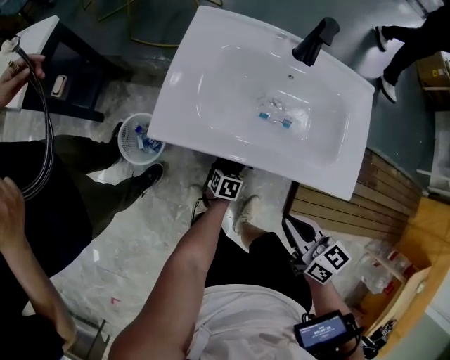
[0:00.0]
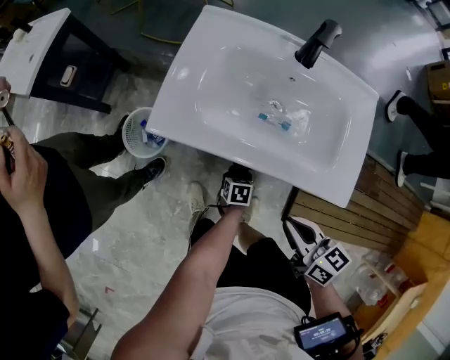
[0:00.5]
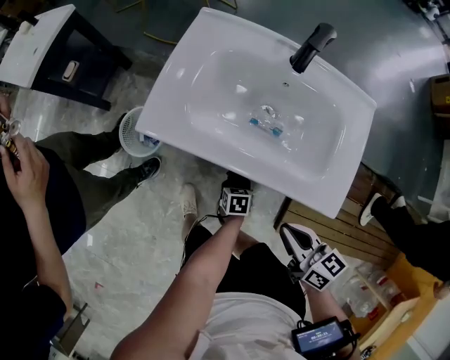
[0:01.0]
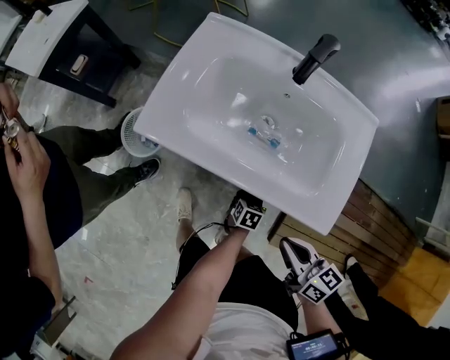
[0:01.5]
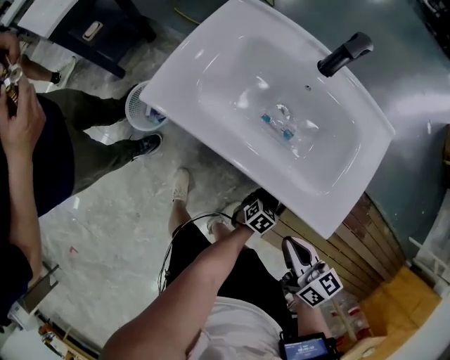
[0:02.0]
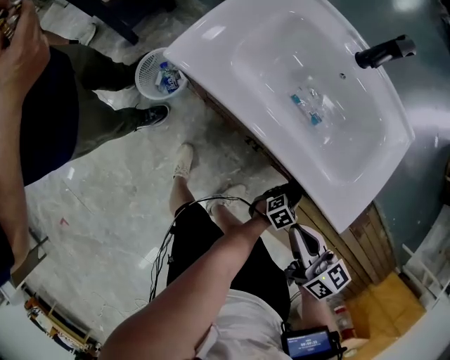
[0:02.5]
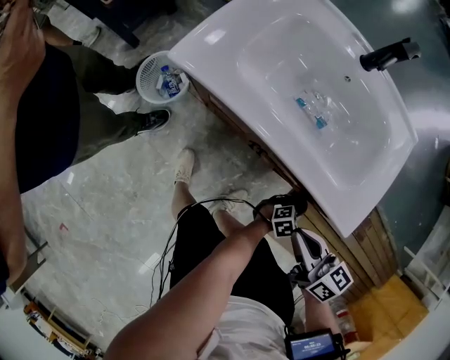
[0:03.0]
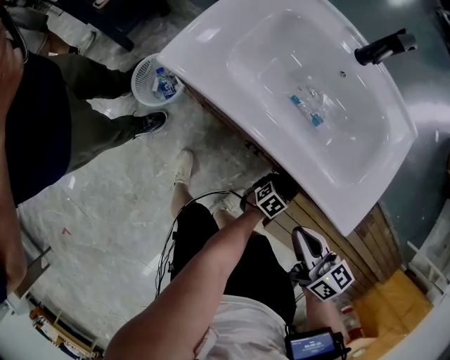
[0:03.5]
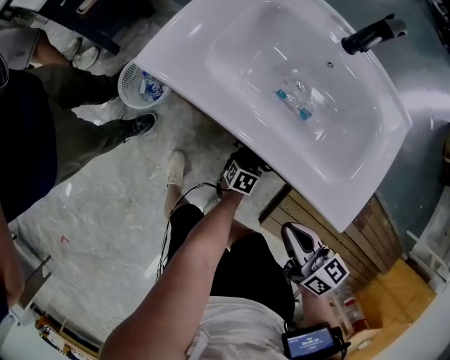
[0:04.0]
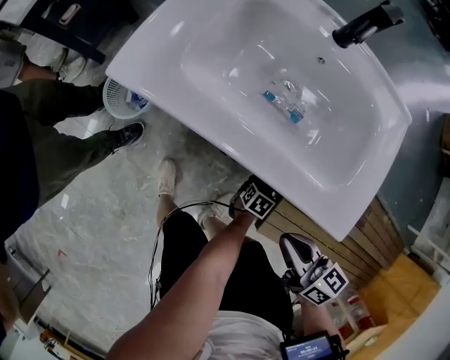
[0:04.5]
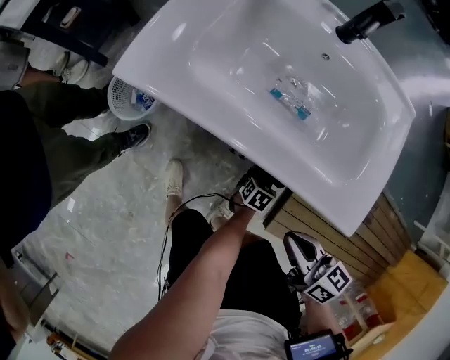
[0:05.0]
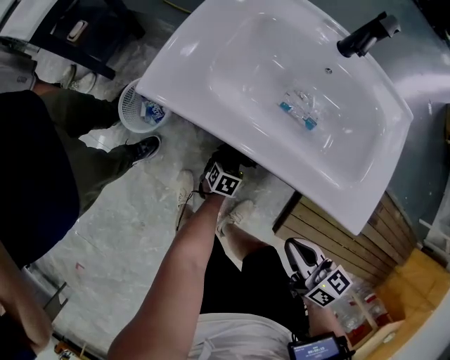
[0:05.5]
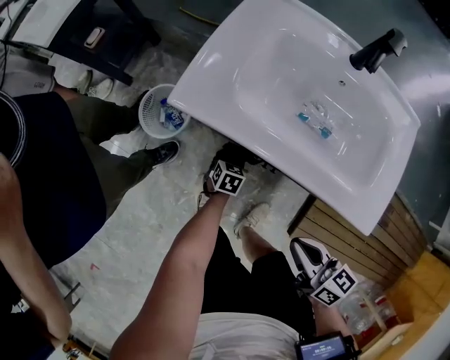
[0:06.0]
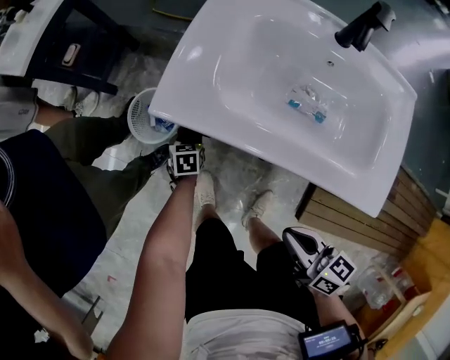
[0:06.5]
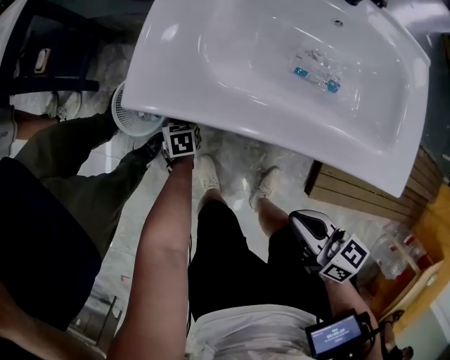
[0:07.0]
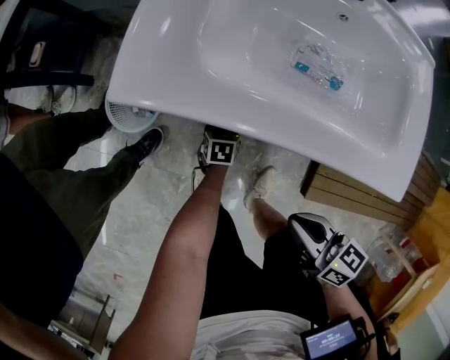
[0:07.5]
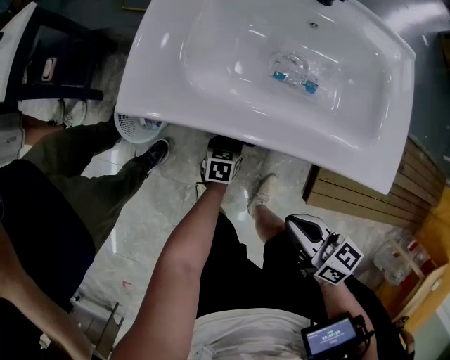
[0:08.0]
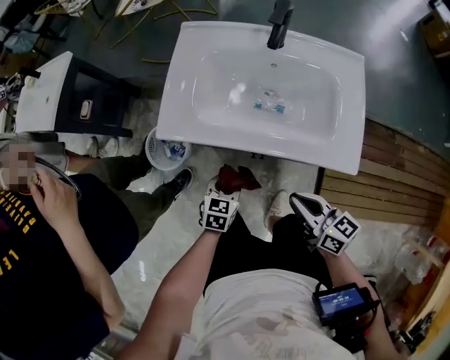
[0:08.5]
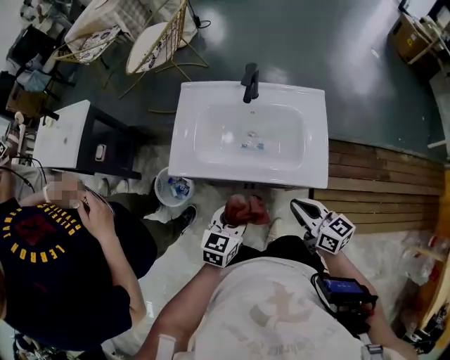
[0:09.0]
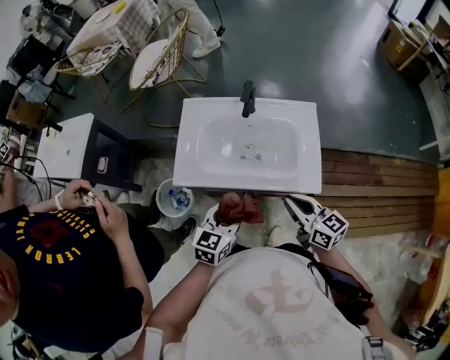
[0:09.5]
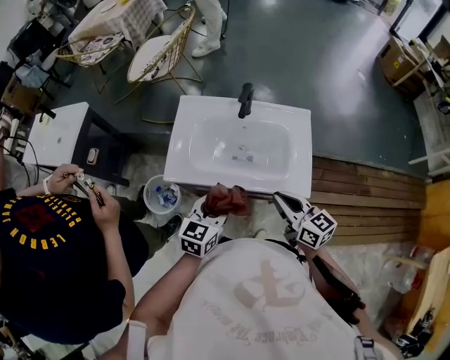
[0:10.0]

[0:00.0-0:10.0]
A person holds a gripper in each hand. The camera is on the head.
0:00.0 to 0:02.0: The left gripper heads to the right, covering some 25 cm, while the right gripper travels to the right by about 10 cm.
0:02.0 to 0:04.0: The left gripper changes place by some 15 cm, and turns by about 20 degrees.
0:04.0 to 0:06.0: The right gripper travels to the left by roughly 5 cm. The left gripper travels to the left by some 15 cm.
0:06.0 to 0:08.0: The left gripper travels to the left and back again, about 15 cm each way.
0:08.0 to 0:10.0: The right gripper shifts some 25 cm upward and forward, and rotates some 20 degrees, while the left gripper is displaced upward by approximately 50 cm, and rotates some 30 degrees.

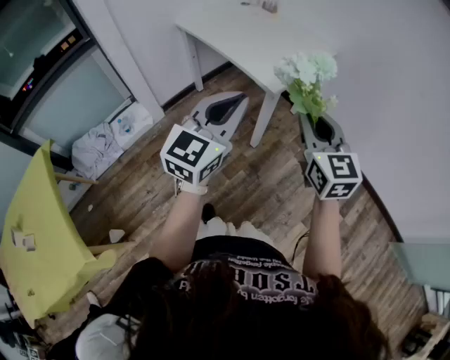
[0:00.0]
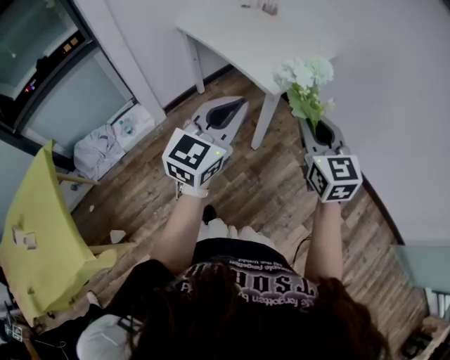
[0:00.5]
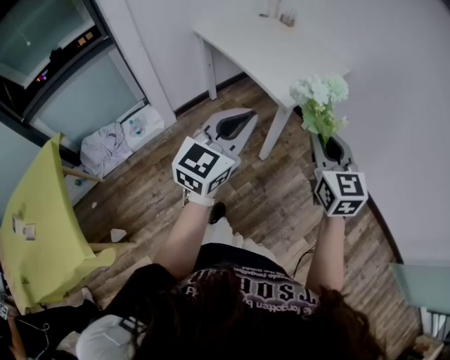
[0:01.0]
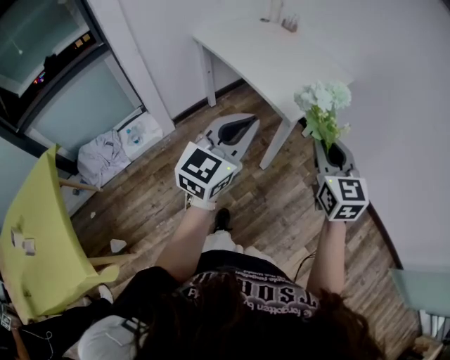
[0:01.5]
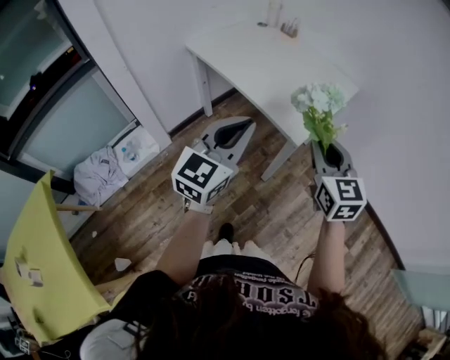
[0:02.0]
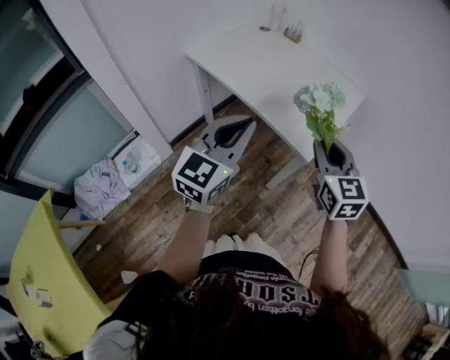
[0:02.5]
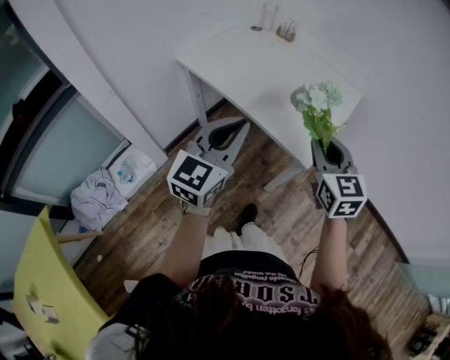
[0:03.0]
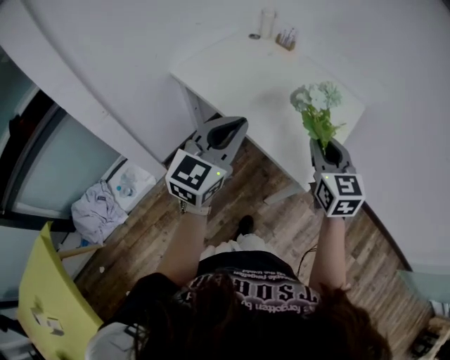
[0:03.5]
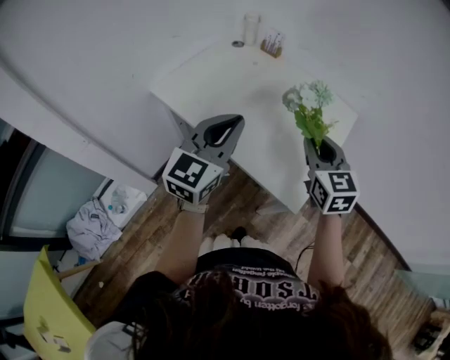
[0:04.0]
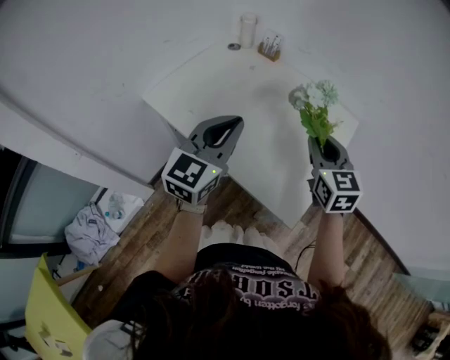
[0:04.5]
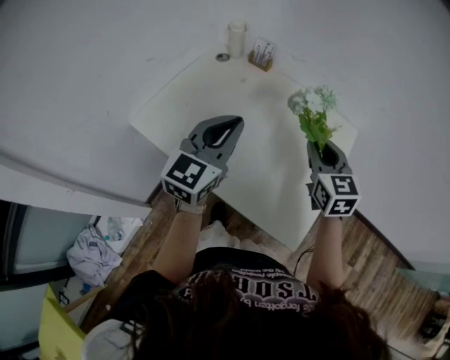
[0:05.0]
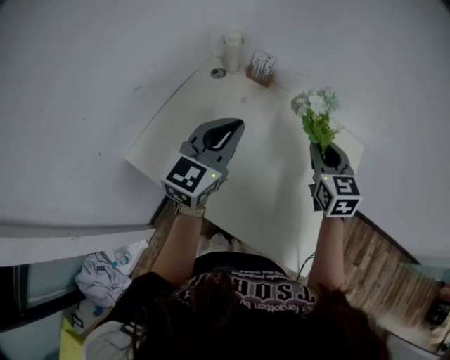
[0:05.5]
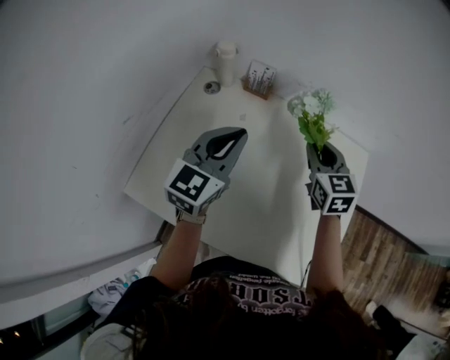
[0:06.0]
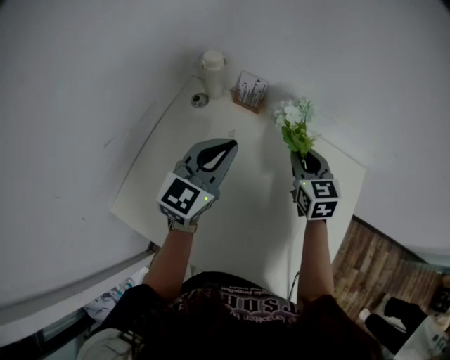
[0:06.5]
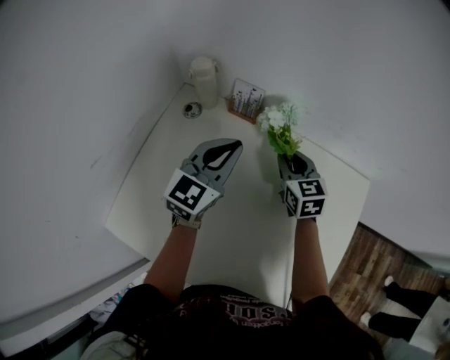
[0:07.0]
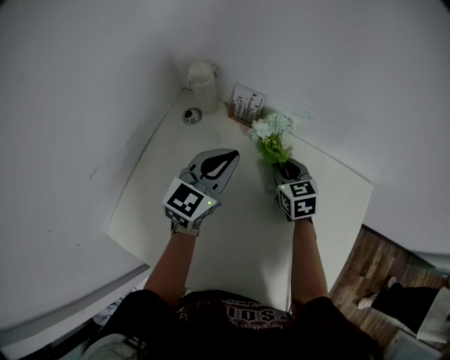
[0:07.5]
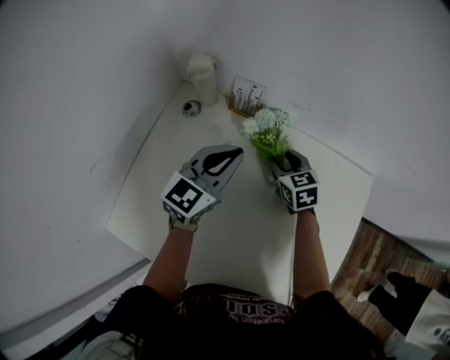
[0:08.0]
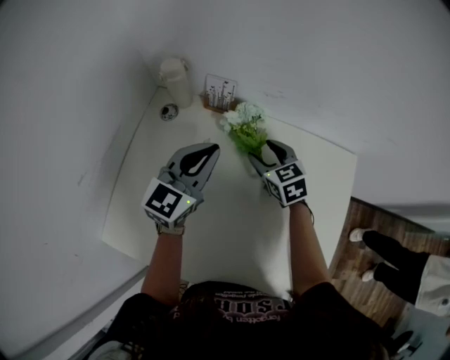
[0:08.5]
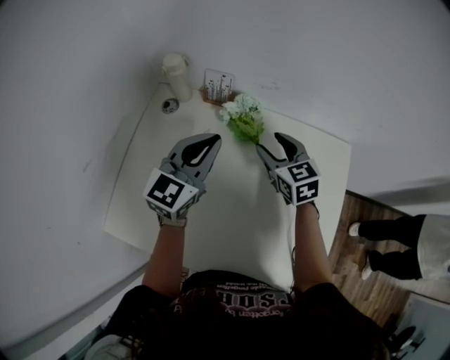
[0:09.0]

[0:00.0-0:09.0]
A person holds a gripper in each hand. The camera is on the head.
0:00.0 to 0:02.0: Both grippers travel together forward and to the left, roughly 15 cm.
0:02.0 to 0:04.5: Both grippers travel together forward, some 25 cm.
0:04.5 to 0:07.0: The right gripper heads forward and downward, covering approximately 35 cm. Meanwhile the left gripper is displaced forward by some 40 cm.
0:07.0 to 0:09.0: The left gripper changes place by approximately 5 cm. The right gripper travels backward by roughly 5 cm, and opens its fingers.

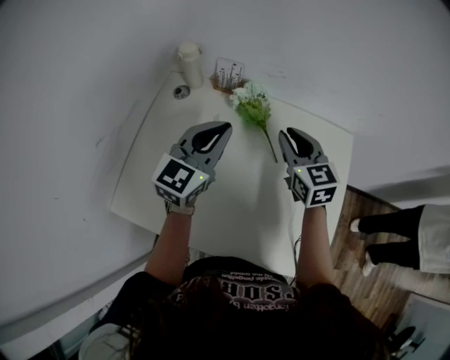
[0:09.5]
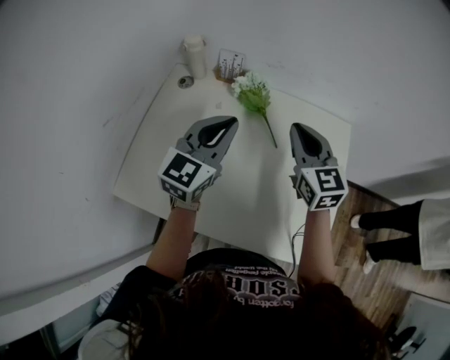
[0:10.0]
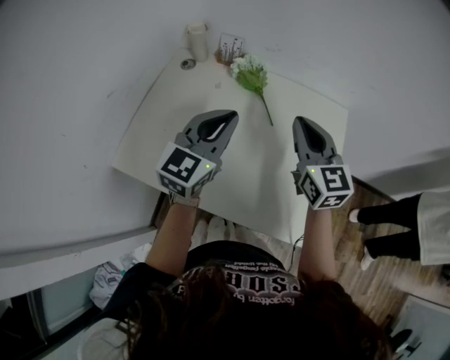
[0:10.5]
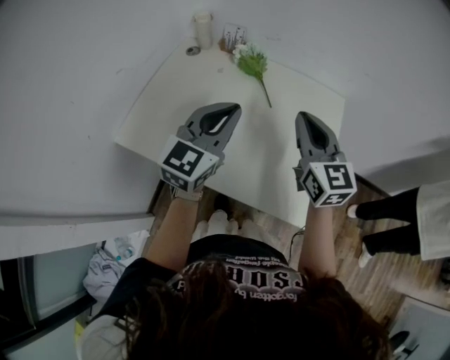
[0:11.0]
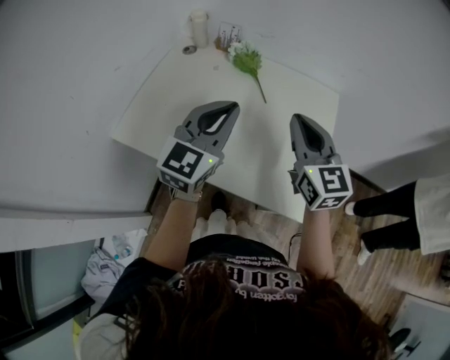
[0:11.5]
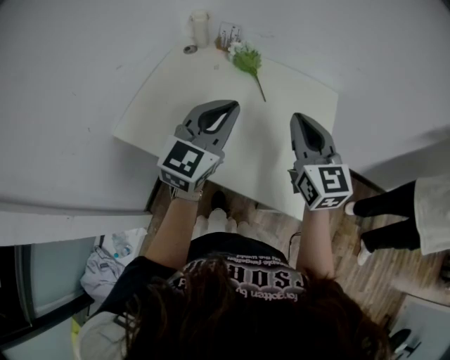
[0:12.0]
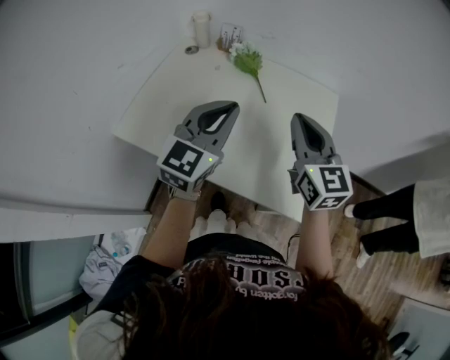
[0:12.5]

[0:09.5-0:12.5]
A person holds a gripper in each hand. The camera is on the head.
0:09.5 to 0:11.0: The right gripper moves backward and upward, about 20 cm. Meanwhile the left gripper is displaced backward and to the right by about 20 cm.
0:11.0 to 0:12.5: The grippers stay close to where they were, moving slightly.

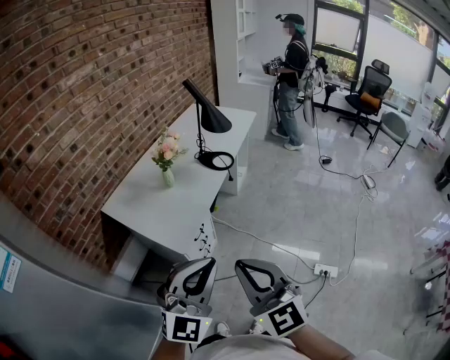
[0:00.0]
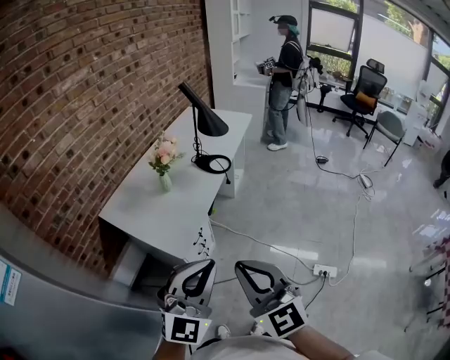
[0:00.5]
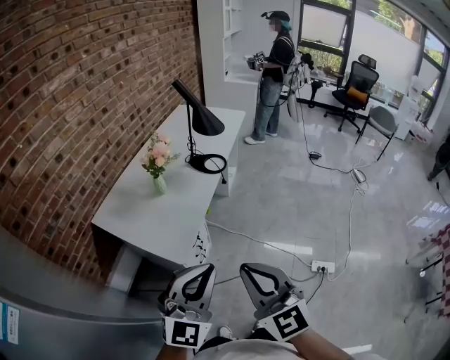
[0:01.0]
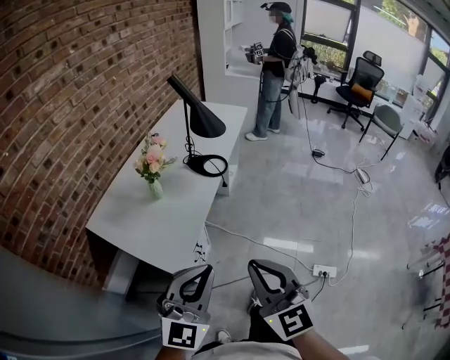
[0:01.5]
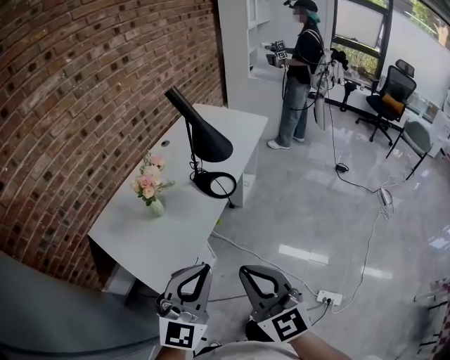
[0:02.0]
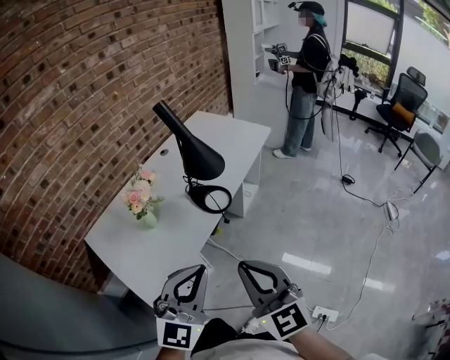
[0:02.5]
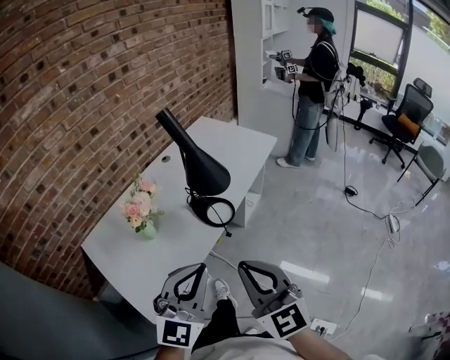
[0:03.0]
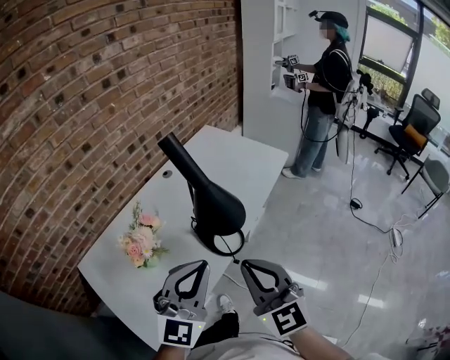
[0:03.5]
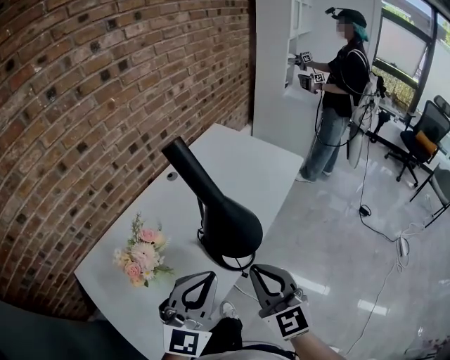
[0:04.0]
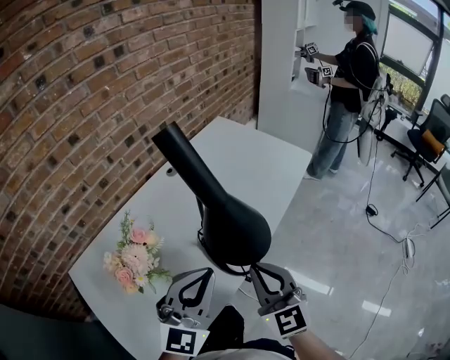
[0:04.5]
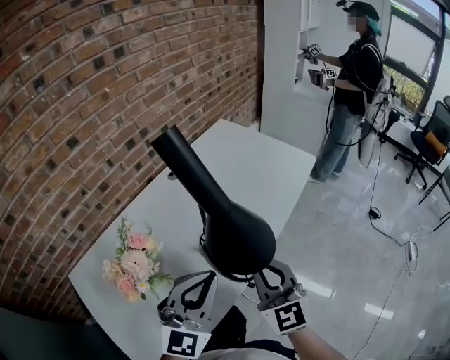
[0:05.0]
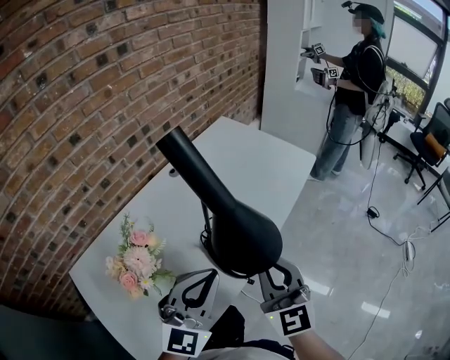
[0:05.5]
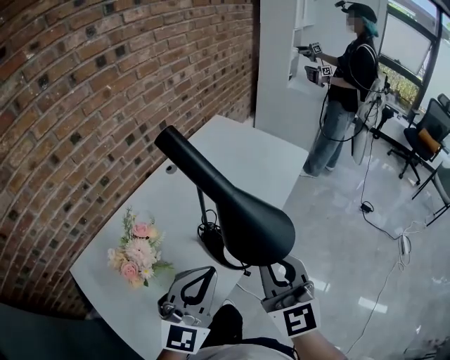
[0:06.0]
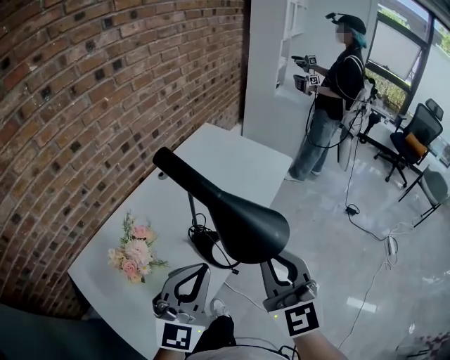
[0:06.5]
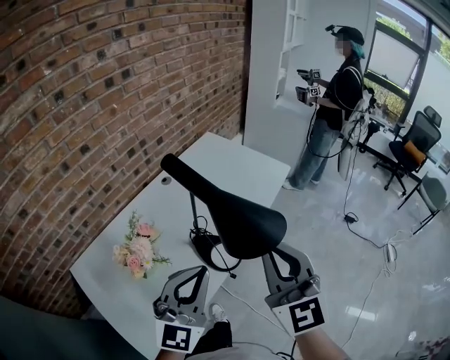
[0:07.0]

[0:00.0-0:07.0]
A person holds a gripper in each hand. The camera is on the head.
0:00.0 to 0:02.0: The two grippers go approximately 25 cm forward.
0:02.0 to 0:03.5: Both grippers move forward, roughly 30 cm.
0:03.5 to 0:05.0: The two grippers go approximately 15 cm forward and downward.
0:05.0 to 0:07.0: The left gripper travels upward and backward by approximately 10 cm. Meanwhile the right gripper heads upward, covering some 20 cm.
